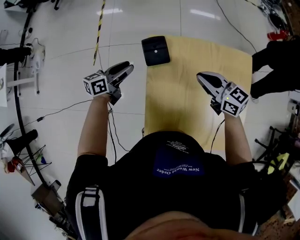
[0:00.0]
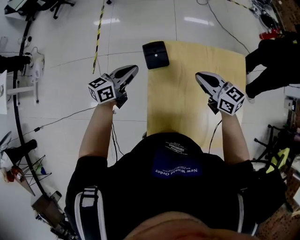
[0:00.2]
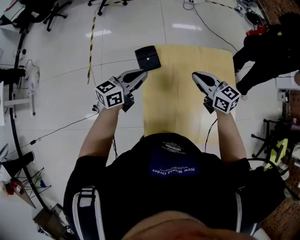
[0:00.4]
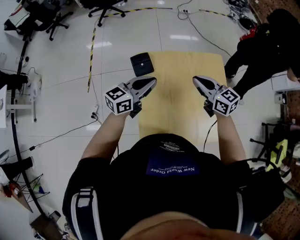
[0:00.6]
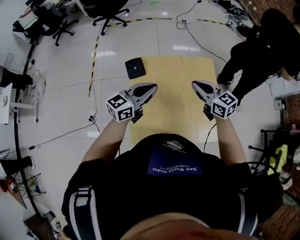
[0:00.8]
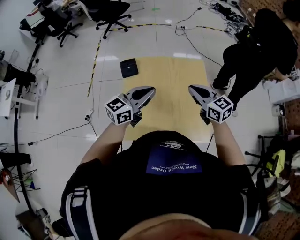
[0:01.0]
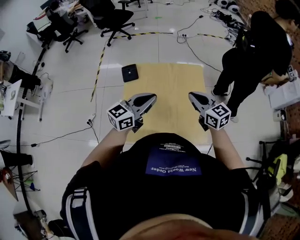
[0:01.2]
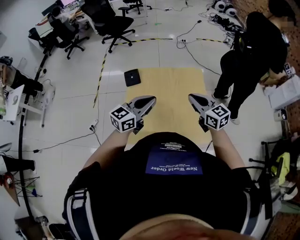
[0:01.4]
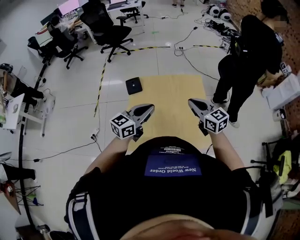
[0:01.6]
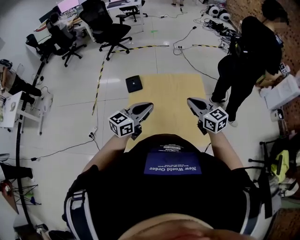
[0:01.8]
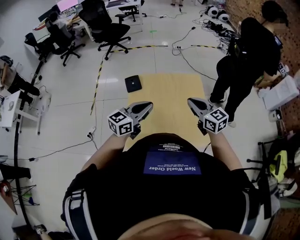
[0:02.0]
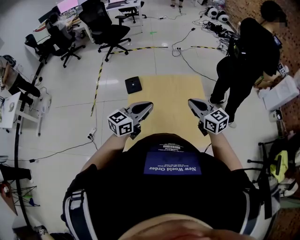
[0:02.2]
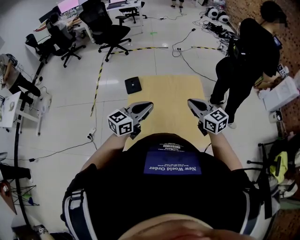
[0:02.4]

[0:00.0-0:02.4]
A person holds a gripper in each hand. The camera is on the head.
0:00.0 to 0:01.2: The left gripper shifts roughly 50 cm to the right, backward and upward, rotates some 30 degrees, and closes its fingers. Meanwhile the right gripper shifts approximately 30 cm to the right, backward and upward, and swivels about 20 degrees.
0:01.2 to 0:02.4: The left gripper is displaced to the left by roughly 5 cm.

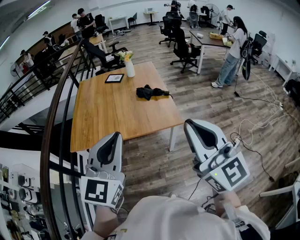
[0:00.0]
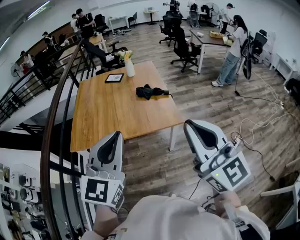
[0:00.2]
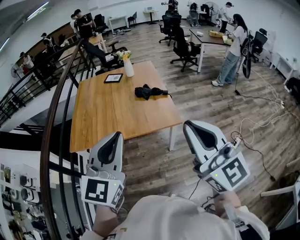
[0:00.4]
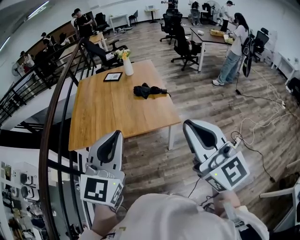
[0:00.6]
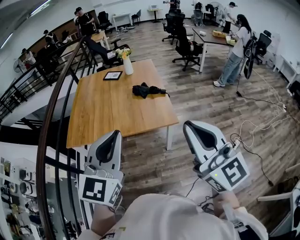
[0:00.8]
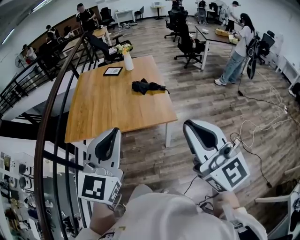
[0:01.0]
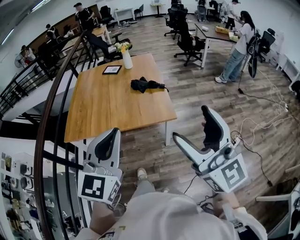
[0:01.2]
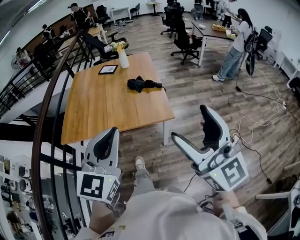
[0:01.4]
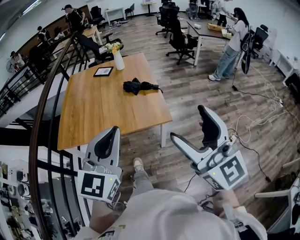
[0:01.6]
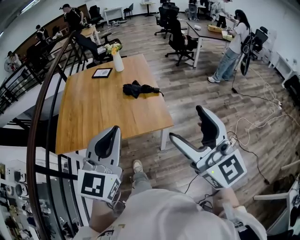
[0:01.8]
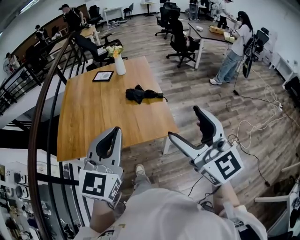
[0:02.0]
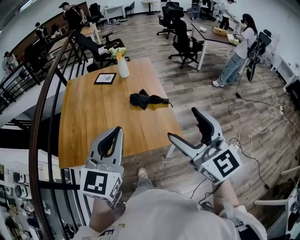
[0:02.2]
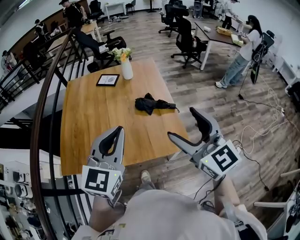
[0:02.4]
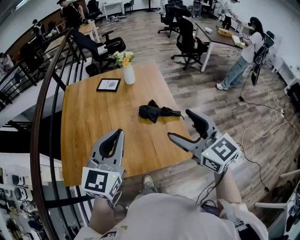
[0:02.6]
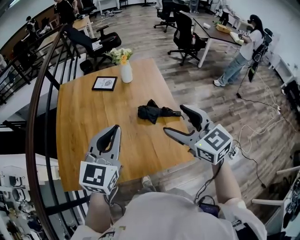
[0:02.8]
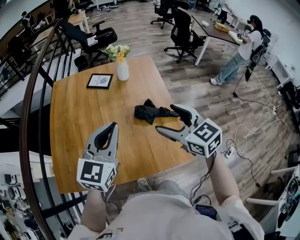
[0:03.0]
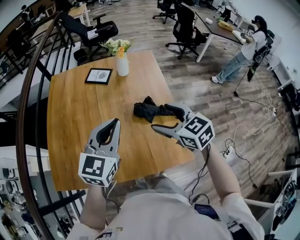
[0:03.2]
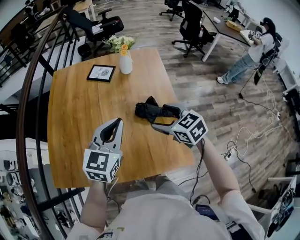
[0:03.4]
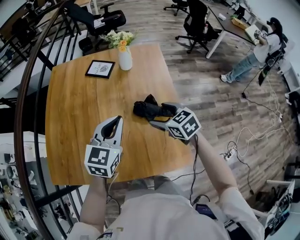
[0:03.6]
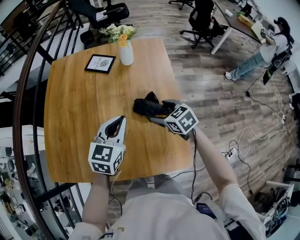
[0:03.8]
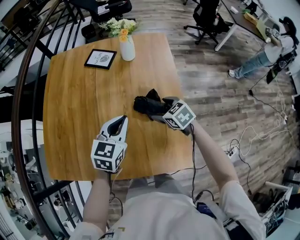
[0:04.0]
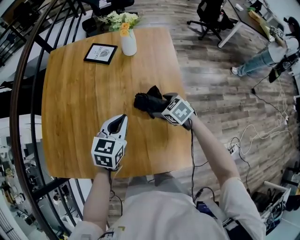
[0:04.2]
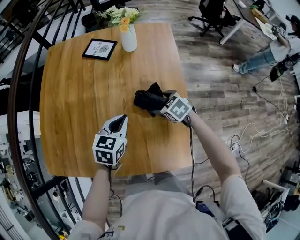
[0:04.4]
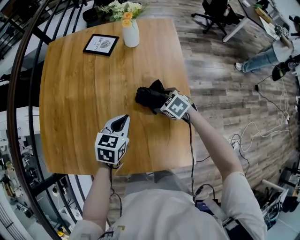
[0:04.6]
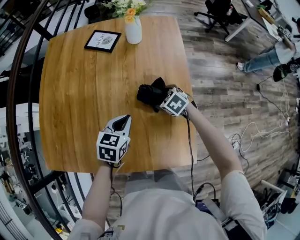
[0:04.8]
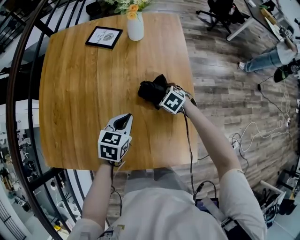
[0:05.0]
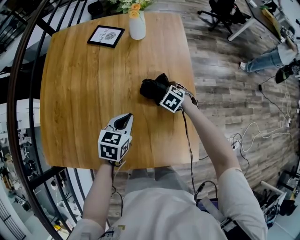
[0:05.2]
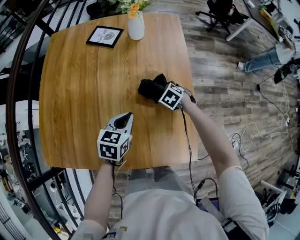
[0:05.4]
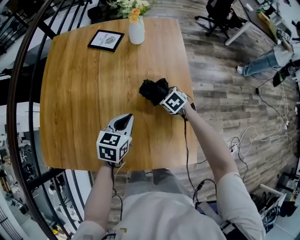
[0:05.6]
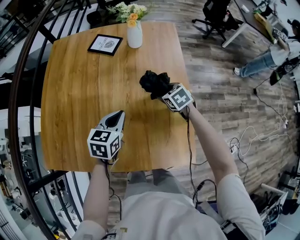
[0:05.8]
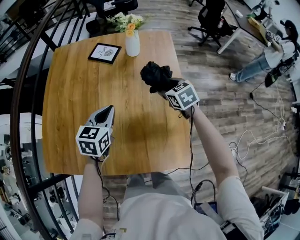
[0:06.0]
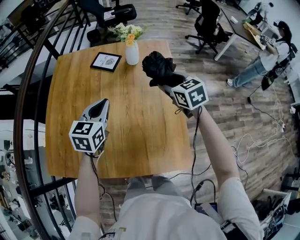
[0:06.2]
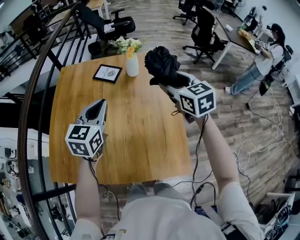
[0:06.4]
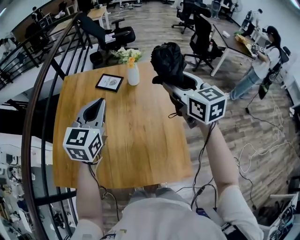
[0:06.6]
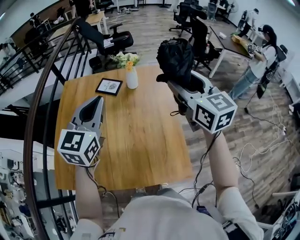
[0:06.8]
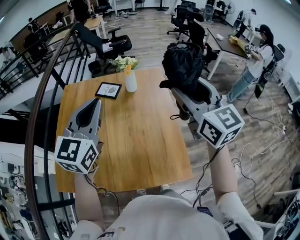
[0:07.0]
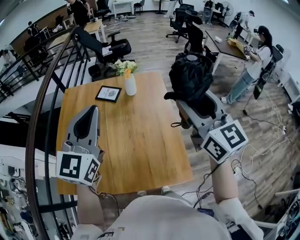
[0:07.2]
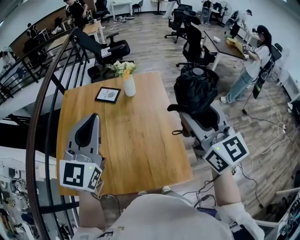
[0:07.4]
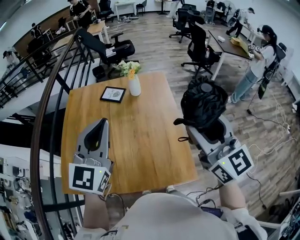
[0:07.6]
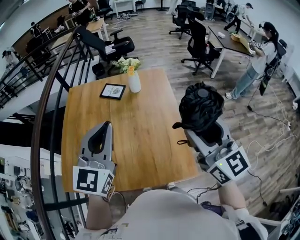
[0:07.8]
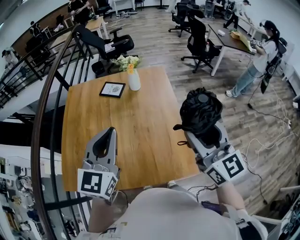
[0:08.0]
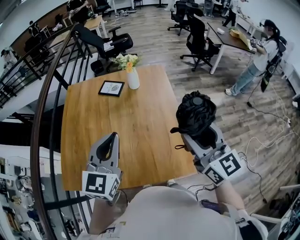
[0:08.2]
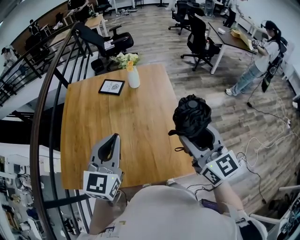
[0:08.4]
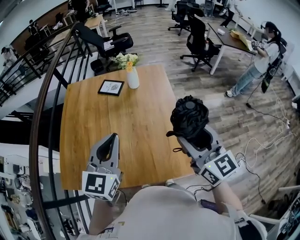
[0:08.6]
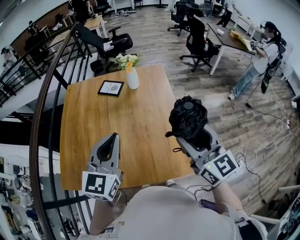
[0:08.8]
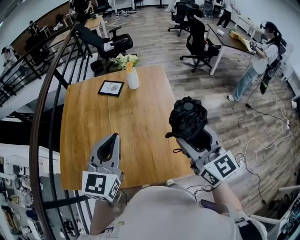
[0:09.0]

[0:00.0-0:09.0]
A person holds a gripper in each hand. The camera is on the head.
0:00.0 to 0:01.6: The left gripper goes some 15 cm to the right and forward. Meanwhile the right gripper is displaced to the right by approximately 10 cm, and opens.
0:01.6 to 0:03.0: Both grippers are carried forward, about 60 cm. The right gripper points its fingers roughly 40 degrees further downward.
0:03.0 to 0:04.4: The grippers both shift downward and forward by roughly 35 cm. The left gripper changes its angle by approximately 30 degrees. The right gripper angles its fingers downward, by some 40 degrees.
0:04.4 to 0:06.0: The right gripper goes approximately 10 cm upward, and rotates some 20 degrees; the left gripper heads to the left and upward, covering roughly 10 cm.
0:06.0 to 0:07.6: The left gripper moves upward, roughly 35 cm, and tips its fingers upward by approximately 30 degrees; the right gripper heads upward and backward, covering roughly 50 cm, and points its fingers about 50 degrees further upward.
0:07.6 to 0:09.0: Both grippers move downward, approximately 10 cm.

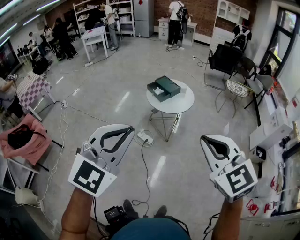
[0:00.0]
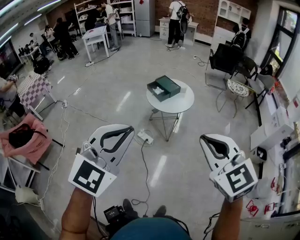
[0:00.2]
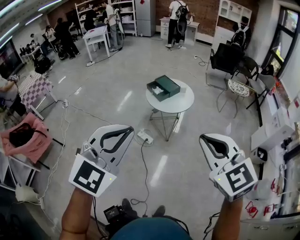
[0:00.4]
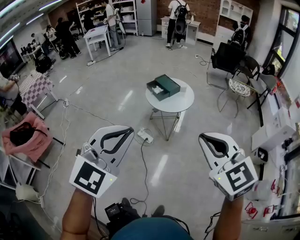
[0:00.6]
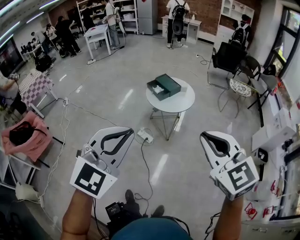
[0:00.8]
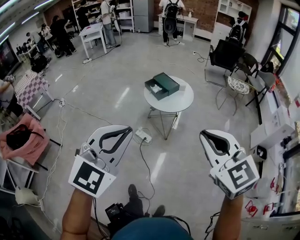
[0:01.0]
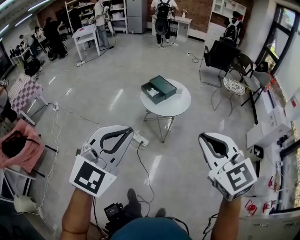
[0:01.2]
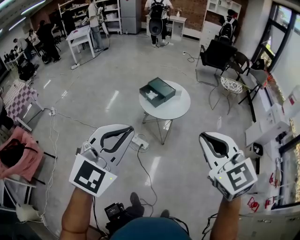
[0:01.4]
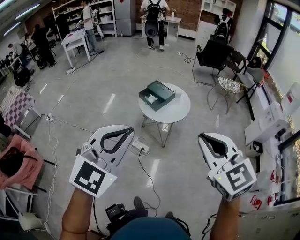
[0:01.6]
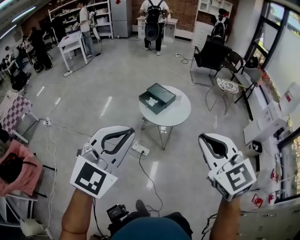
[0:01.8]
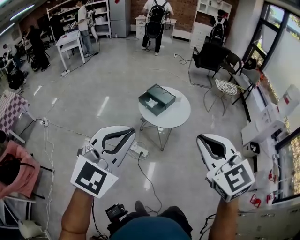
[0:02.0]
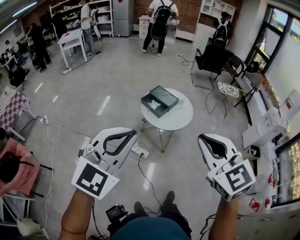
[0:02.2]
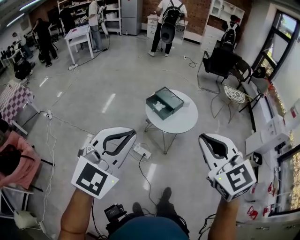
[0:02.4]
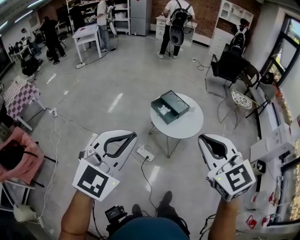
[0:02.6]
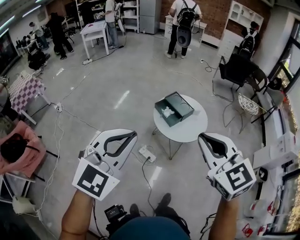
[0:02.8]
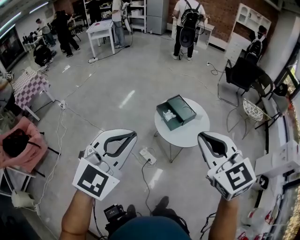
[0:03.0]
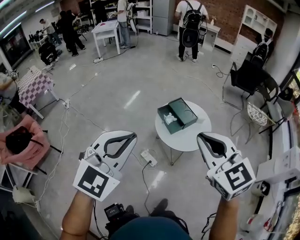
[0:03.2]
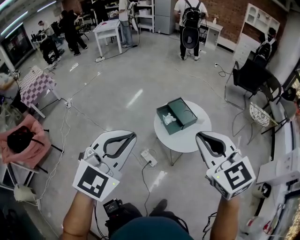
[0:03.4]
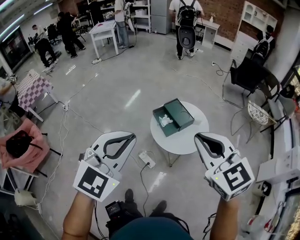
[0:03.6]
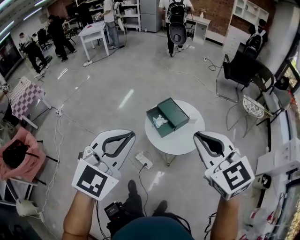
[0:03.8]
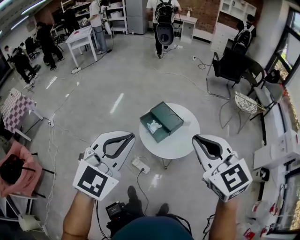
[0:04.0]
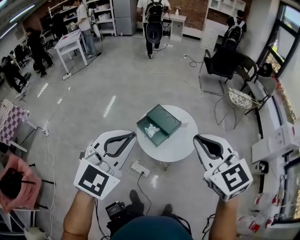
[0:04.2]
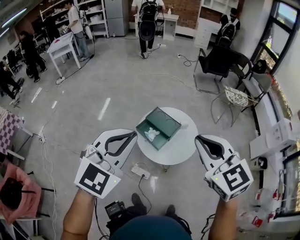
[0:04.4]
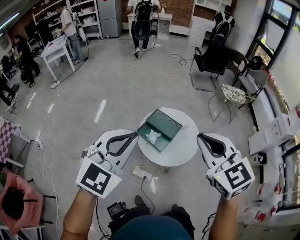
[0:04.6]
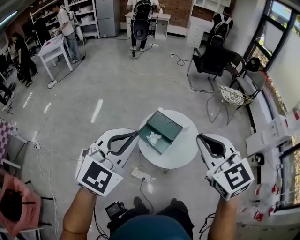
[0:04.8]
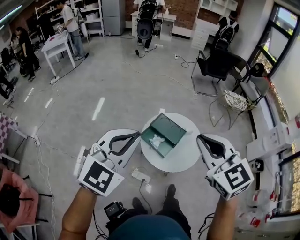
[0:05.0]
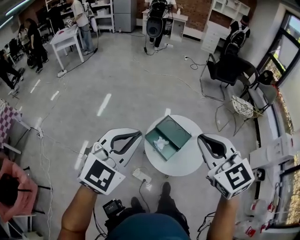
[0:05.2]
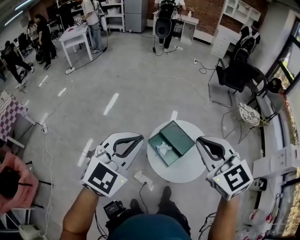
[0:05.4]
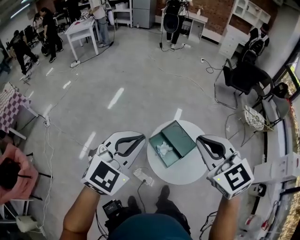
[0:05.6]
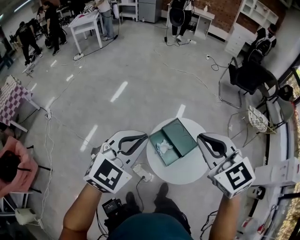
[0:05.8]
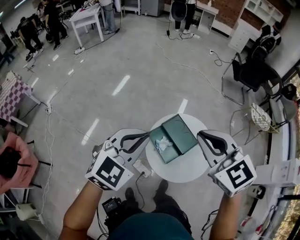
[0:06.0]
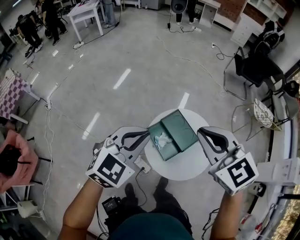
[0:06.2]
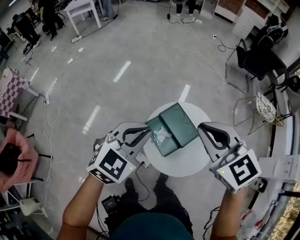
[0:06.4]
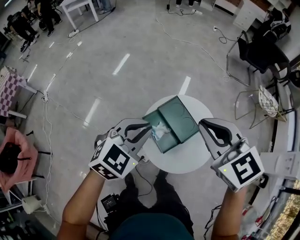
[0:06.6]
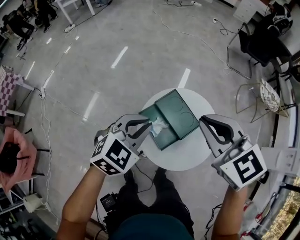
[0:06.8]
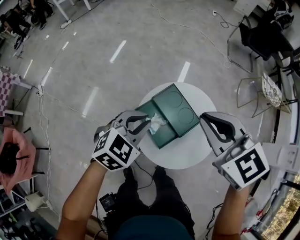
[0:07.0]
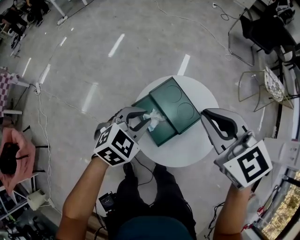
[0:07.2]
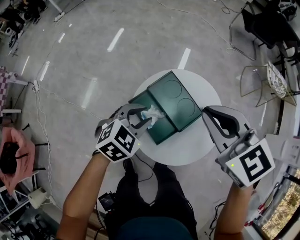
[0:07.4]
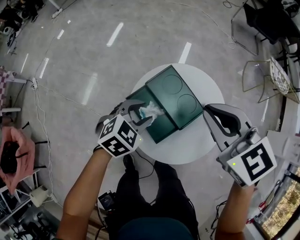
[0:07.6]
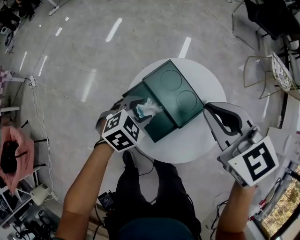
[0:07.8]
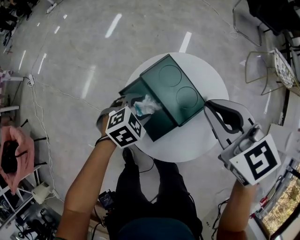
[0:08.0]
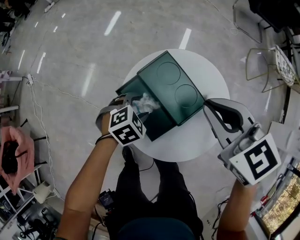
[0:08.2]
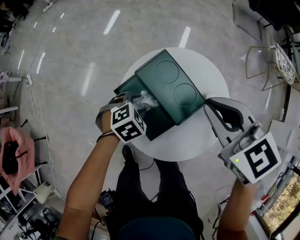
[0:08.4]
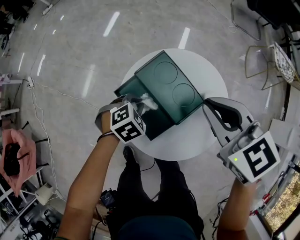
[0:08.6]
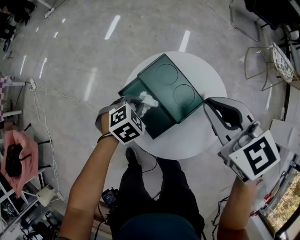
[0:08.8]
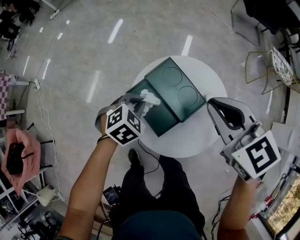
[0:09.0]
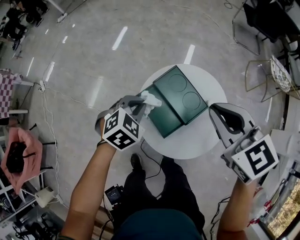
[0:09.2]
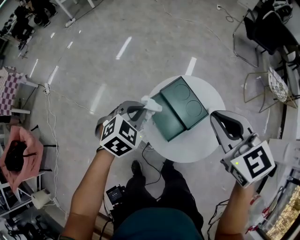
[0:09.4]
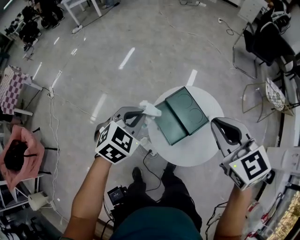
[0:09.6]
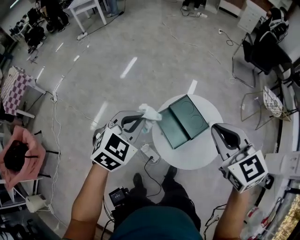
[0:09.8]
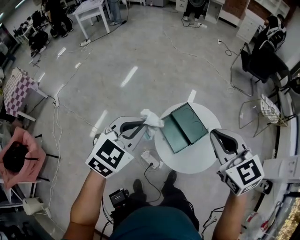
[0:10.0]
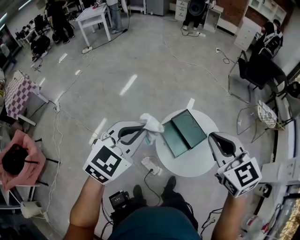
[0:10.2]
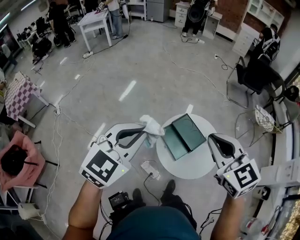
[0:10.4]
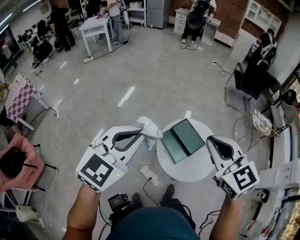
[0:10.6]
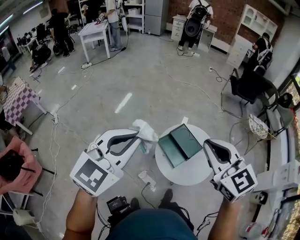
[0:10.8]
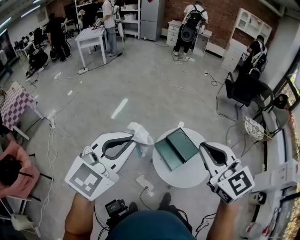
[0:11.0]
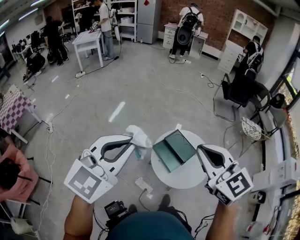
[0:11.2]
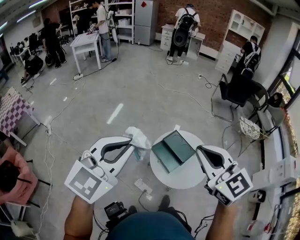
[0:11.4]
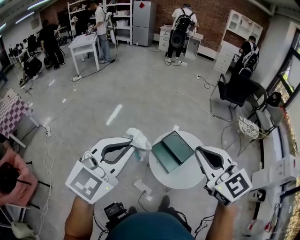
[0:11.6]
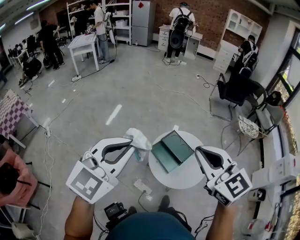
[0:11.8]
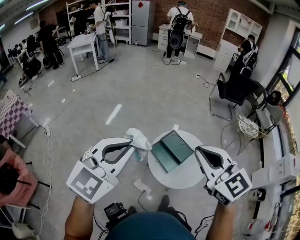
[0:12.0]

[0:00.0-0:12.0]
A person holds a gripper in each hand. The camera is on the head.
0:00.0 to 0:01.6: Both grippers travel together forward and to the left, approximately 25 cm.
0:01.6 to 0:03.0: The grippers both shift forward by some 30 cm.
0:03.0 to 0:04.4: Both grippers travel together forward, some 30 cm.
0:04.4 to 0:06.0: The right gripper goes roughly 30 cm forward, while the left gripper goes roughly 30 cm forward and downward.
0:06.0 to 0:07.6: The left gripper heads downward, covering roughly 50 cm, turns by about 30 degrees, and opens up, while the right gripper heads downward and forward, covering some 40 cm.
0:07.6 to 0:09.0: The left gripper goes downward and returns, about 15 cm each way, and closes. Meanwhile the right gripper reaches about 10 cm downward, then returns.
0:09.0 to 0:10.4: The right gripper moves upward, backward and to the left, some 50 cm, while the left gripper heads upward, covering roughly 60 cm, and tips its fingers upward by some 40 degrees.
0:10.4 to 0:12.0: The two grippers go about 15 cm backward and upward.
